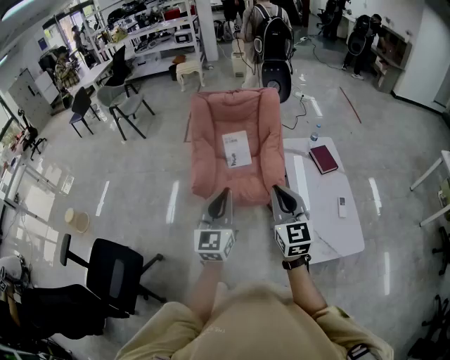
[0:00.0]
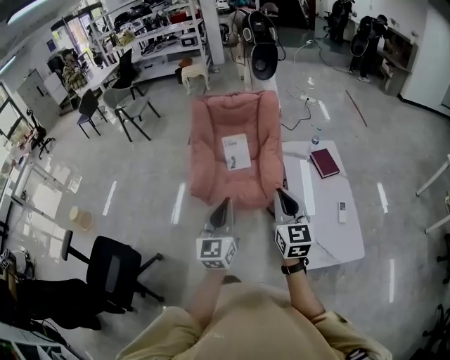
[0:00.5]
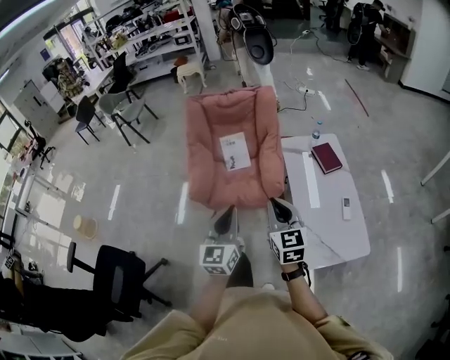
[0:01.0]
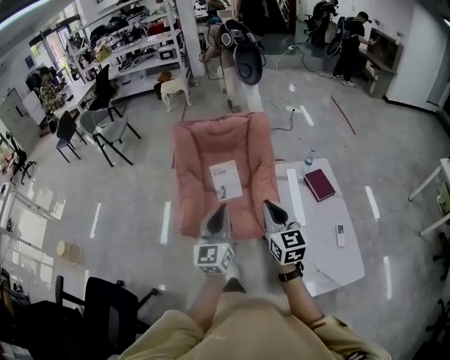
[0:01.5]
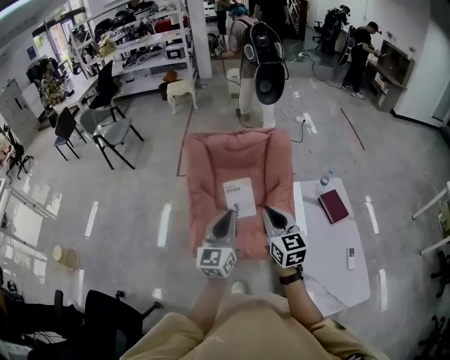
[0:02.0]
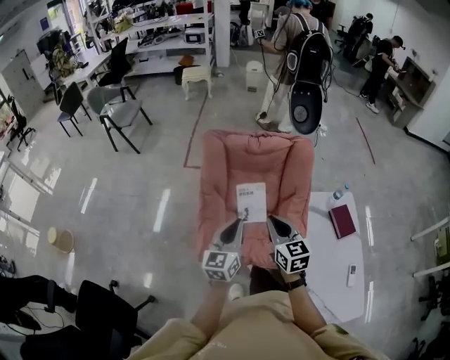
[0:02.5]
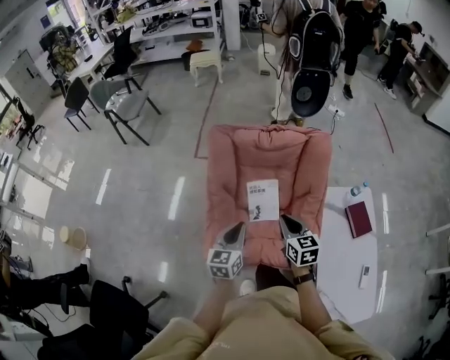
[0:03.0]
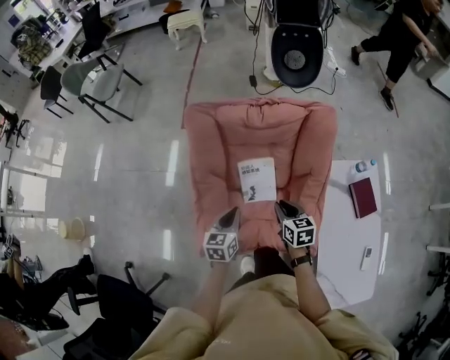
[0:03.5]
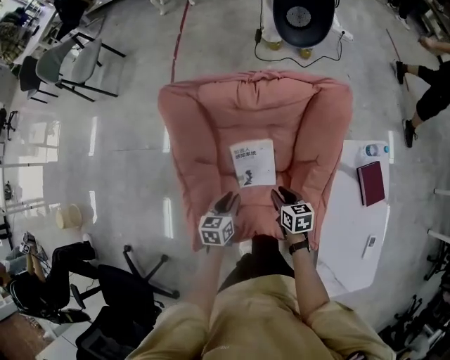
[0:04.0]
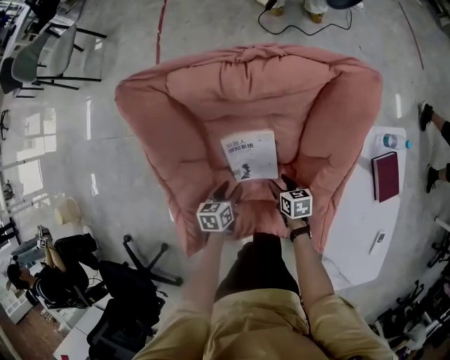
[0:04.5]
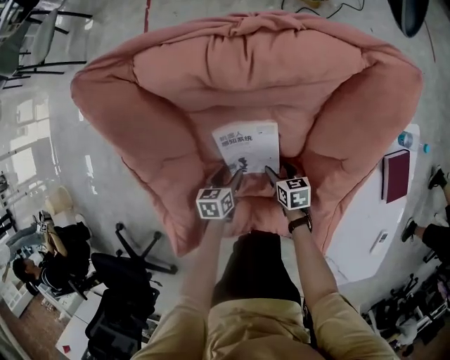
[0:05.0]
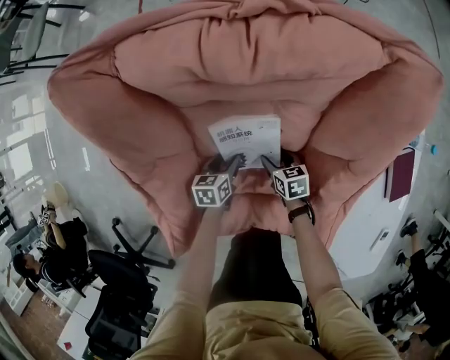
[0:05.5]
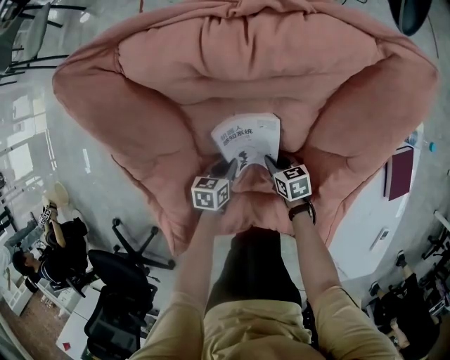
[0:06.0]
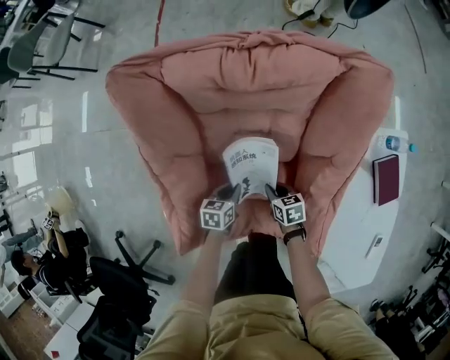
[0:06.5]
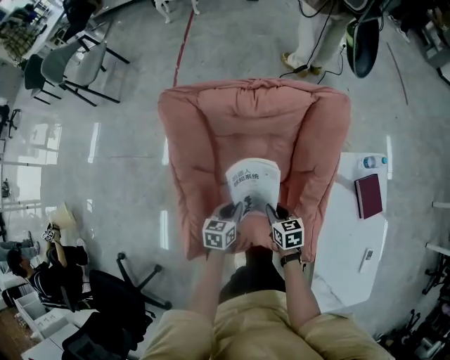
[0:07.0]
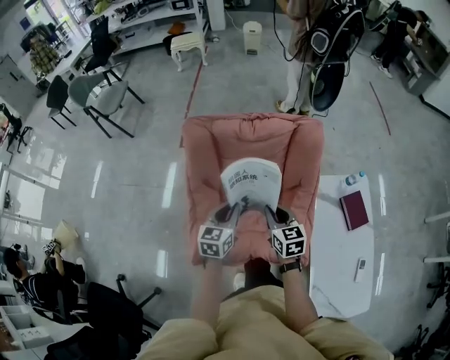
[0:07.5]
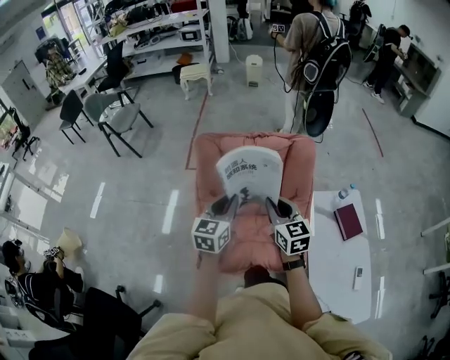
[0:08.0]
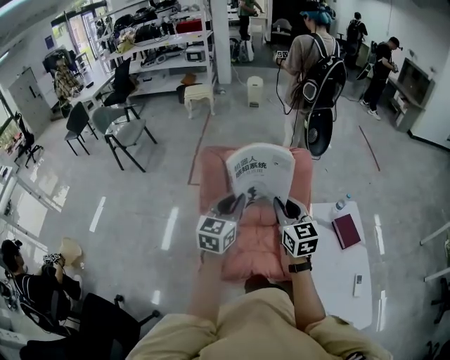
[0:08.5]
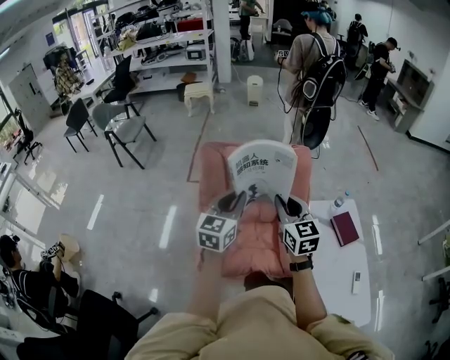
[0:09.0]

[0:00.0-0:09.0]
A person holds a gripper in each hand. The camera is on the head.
0:00.0 to 0:02.0: The two grippers go about 35 cm forward.
0:02.0 to 0:04.5: Both grippers move downward and forward, some 60 cm. The right gripper tips its fingers downward by some 40 degrees, and opens its fingers; the left gripper tilts its fingers some 50 degrees downward, and opens.
0:04.5 to 0:07.0: The grippers both shift upward by some 15 cm. The left gripper closes its fingers. The right gripper closes up.
0:07.0 to 0:09.0: The grippers both shift upward by roughly 50 cm. The left gripper tilts its fingers about 30 degrees upward. Meanwhile the right gripper tilts its fingers approximately 40 degrees upward.

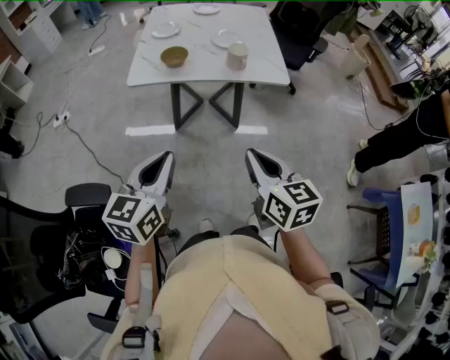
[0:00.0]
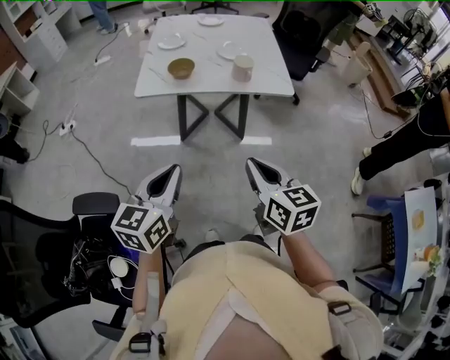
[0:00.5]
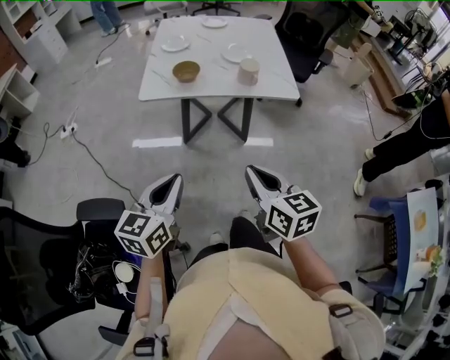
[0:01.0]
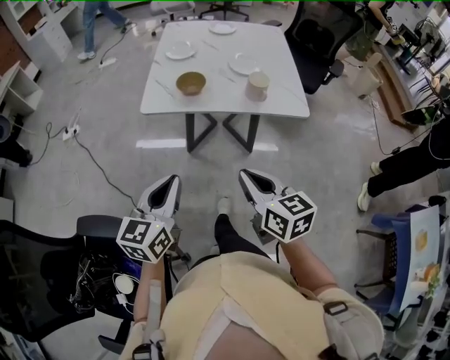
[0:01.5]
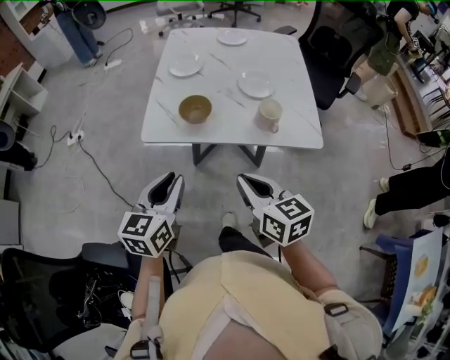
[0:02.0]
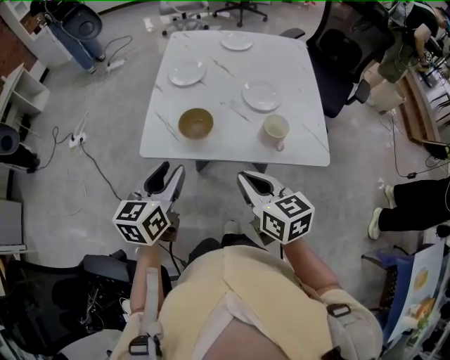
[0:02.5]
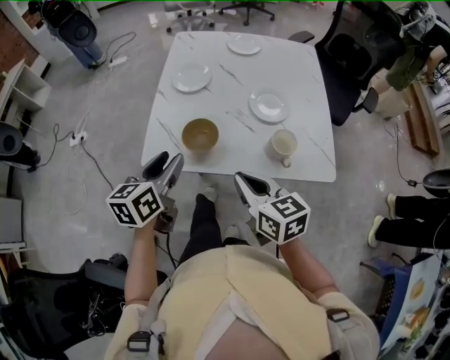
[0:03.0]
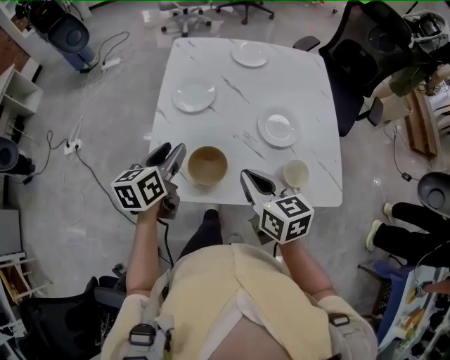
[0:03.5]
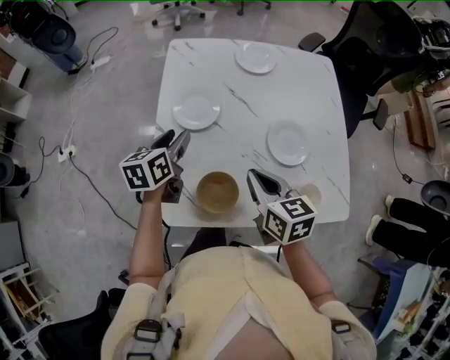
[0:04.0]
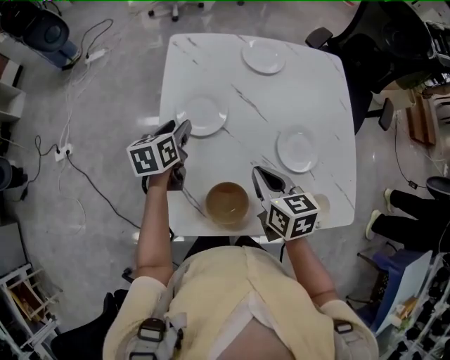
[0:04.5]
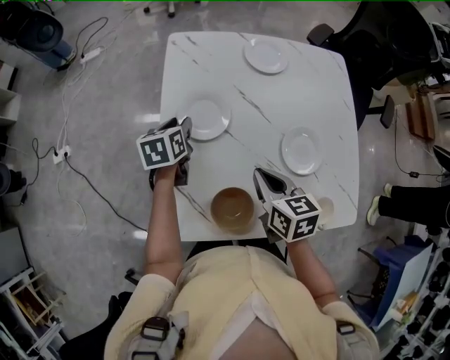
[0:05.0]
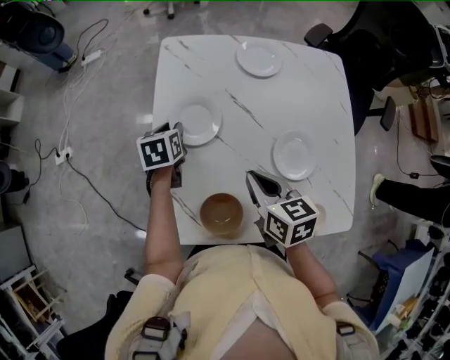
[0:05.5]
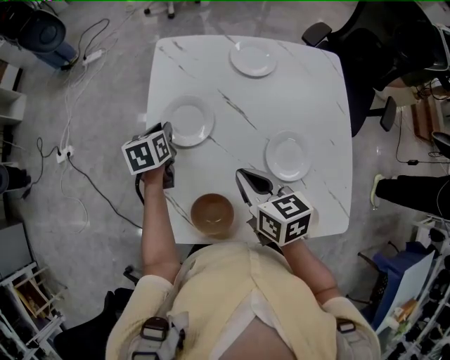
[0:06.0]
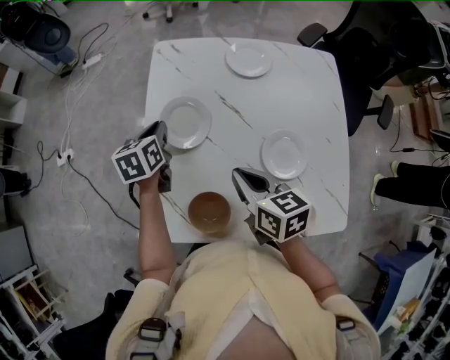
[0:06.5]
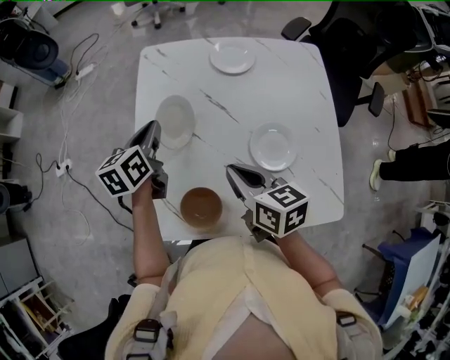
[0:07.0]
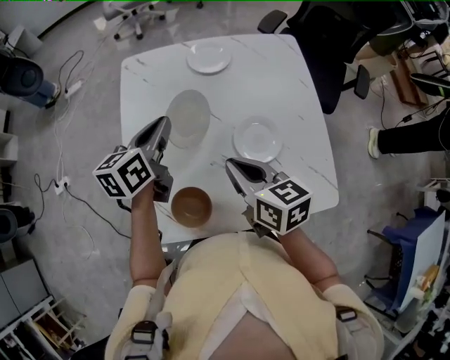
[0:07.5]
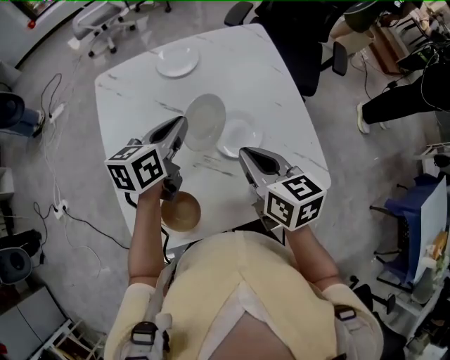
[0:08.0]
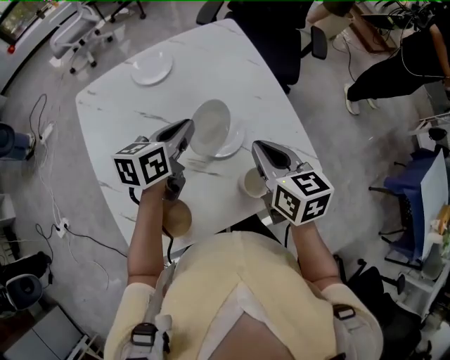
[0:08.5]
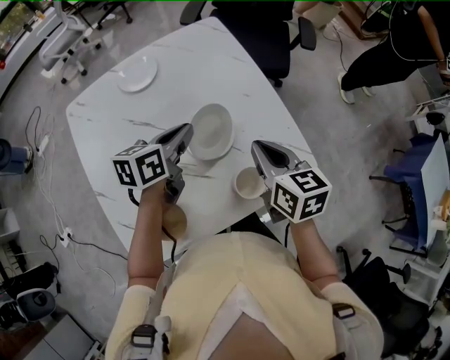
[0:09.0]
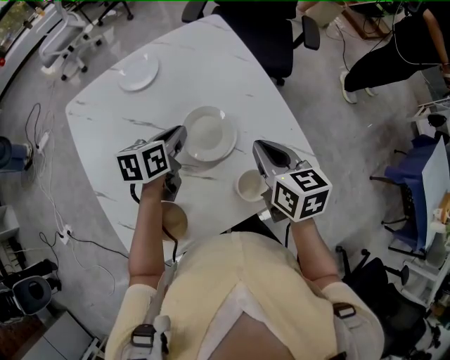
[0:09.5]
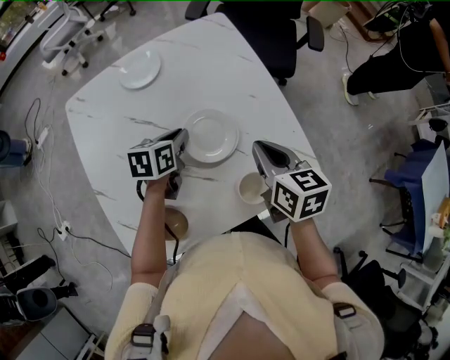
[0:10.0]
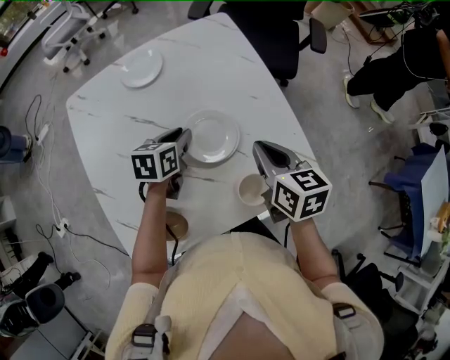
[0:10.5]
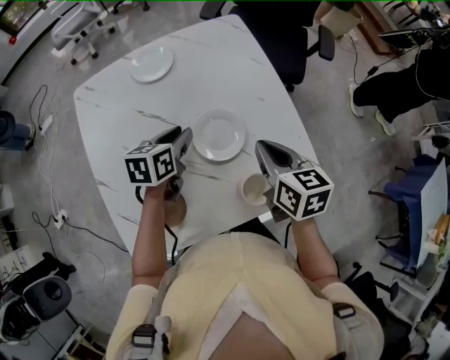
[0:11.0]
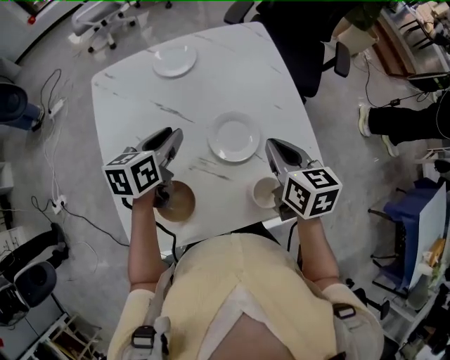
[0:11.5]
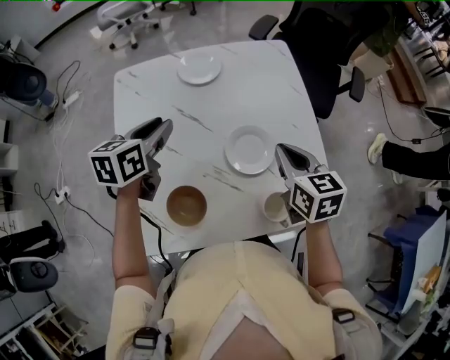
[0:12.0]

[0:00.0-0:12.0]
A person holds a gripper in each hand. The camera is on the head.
0:00.0 to 0:02.0: Both grippers move forward, approximately 20 cm.
0:02.0 to 0:04.0: Both grippers travel together forward, approximately 40 cm. The left gripper opens its fingers.
0:04.0 to 0:06.0: The right gripper travels forward by roughly 5 cm, while the left gripper is displaced forward and downward by about 15 cm, rotates approximately 20 degrees, and closes.
0:06.0 to 0:08.0: The right gripper changes place by approximately 15 cm, and turns by approximately 20 degrees, while the left gripper changes place by roughly 30 cm, and rotates some 40 degrees.
0:08.0 to 0:10.0: The left gripper shifts some 15 cm downward and to the right, and swivels about 20 degrees; the right gripper moves to the right, approximately 10 cm.
0:10.0 to 0:12.0: The left gripper moves to the left and upward, some 20 cm; the right gripper is displaced to the left by some 5 cm.

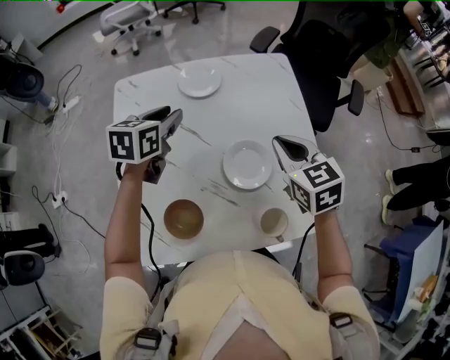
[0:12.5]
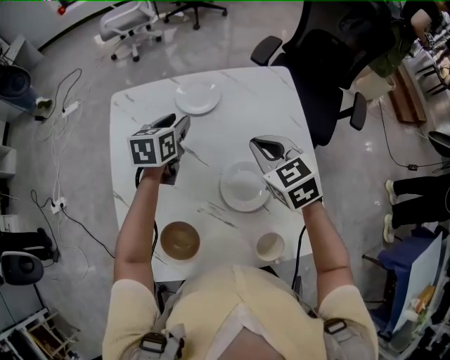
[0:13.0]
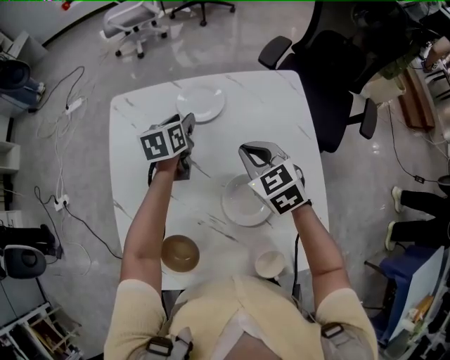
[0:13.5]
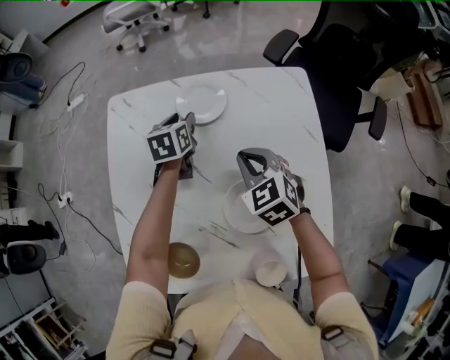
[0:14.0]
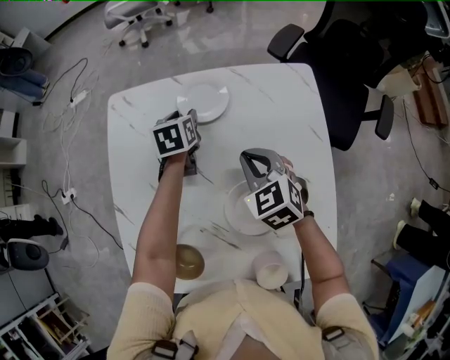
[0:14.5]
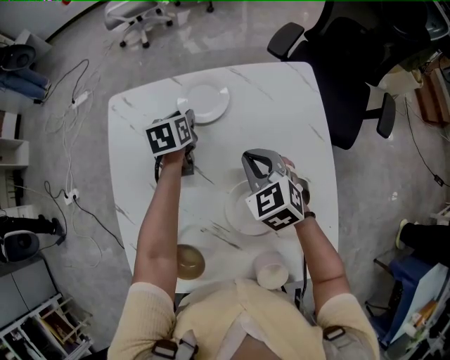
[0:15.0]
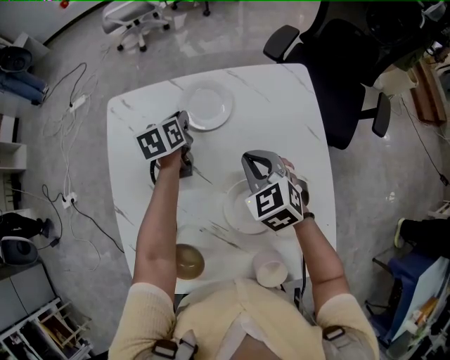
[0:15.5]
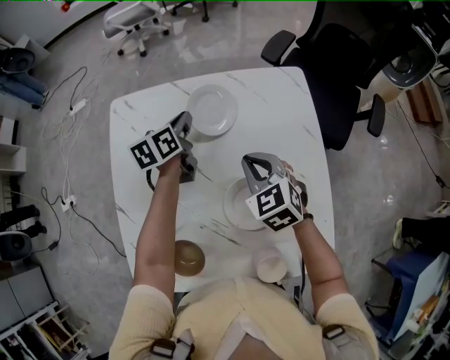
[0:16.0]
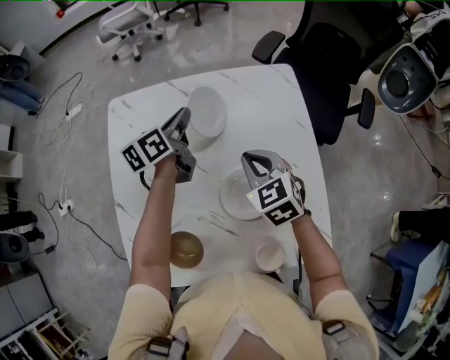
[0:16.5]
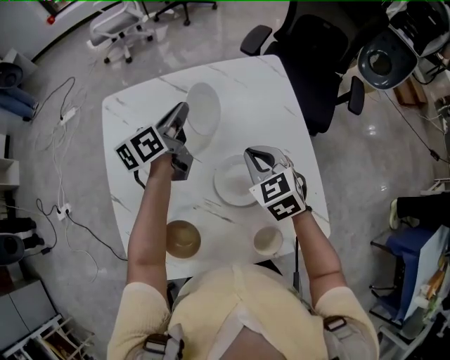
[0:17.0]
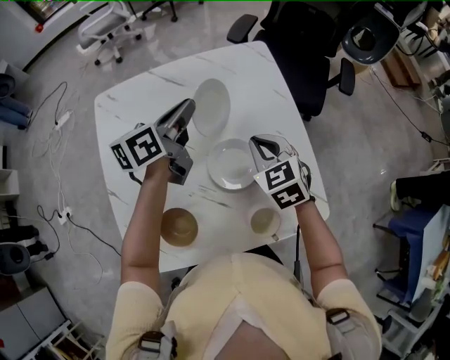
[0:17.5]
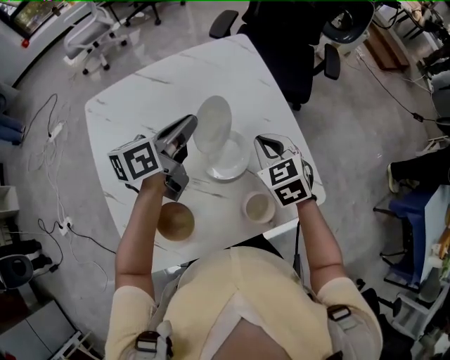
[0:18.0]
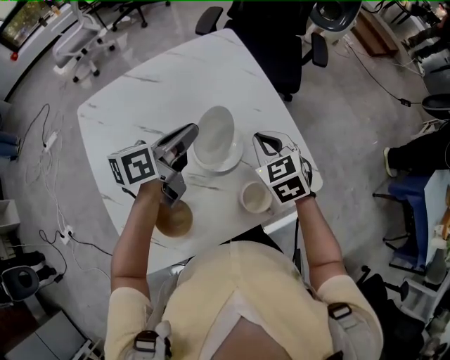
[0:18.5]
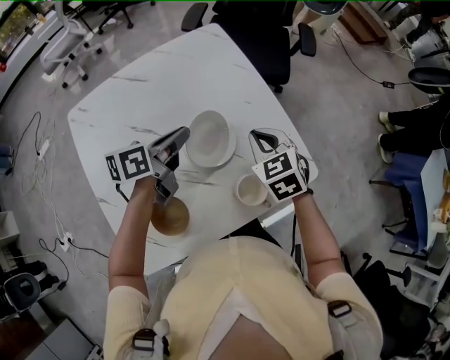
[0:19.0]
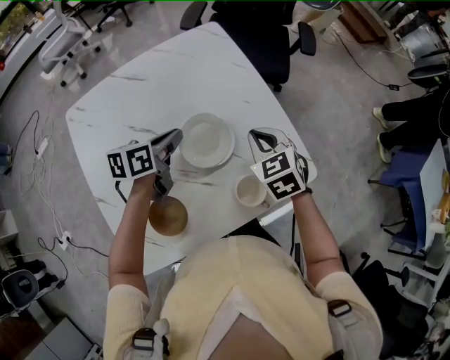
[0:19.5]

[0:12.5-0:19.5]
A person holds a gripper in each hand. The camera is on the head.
0:12.5 to 0:14.5: The right gripper travels downward, forward and to the left by approximately 15 cm, and rotates some 20 degrees, while the left gripper is displaced downward and forward by roughly 20 cm, and swivels some 30 degrees.
0:14.5 to 0:16.0: The left gripper is displaced upward by some 5 cm, changes its angle by some 30 degrees, and closes.
0:16.0 to 0:17.5: The right gripper is displaced backward and to the right by roughly 10 cm. The left gripper shifts about 20 cm upward, backward and to the right, and changes its angle by approximately 30 degrees.
0:17.5 to 0:19.5: The right gripper travels to the right by roughly 10 cm. Meanwhile the left gripper goes roughly 15 cm downward, backward and to the right, and changes its angle by approximately 30 degrees.
